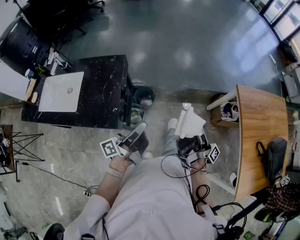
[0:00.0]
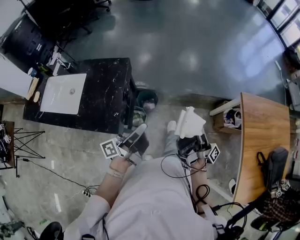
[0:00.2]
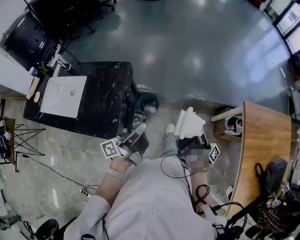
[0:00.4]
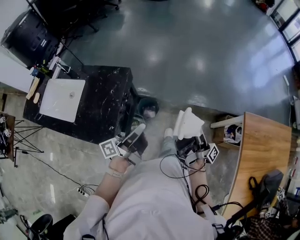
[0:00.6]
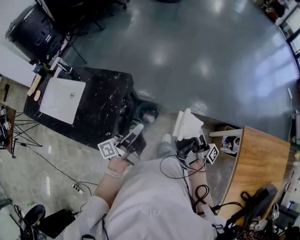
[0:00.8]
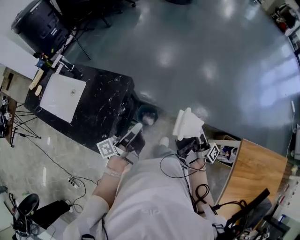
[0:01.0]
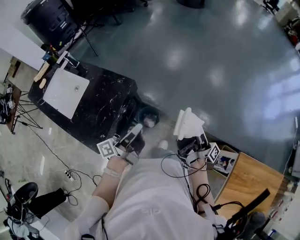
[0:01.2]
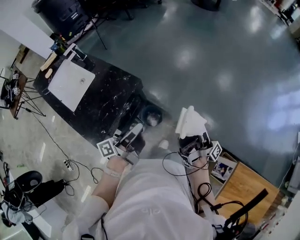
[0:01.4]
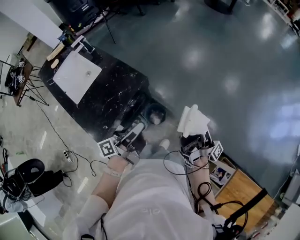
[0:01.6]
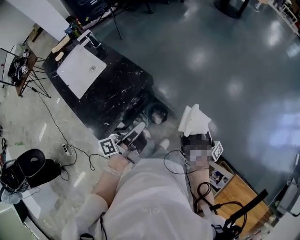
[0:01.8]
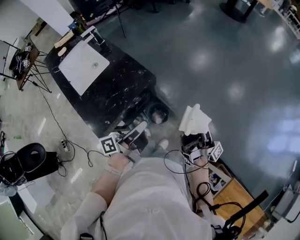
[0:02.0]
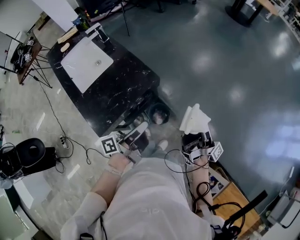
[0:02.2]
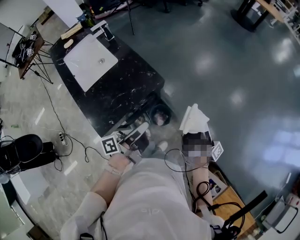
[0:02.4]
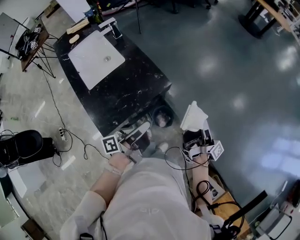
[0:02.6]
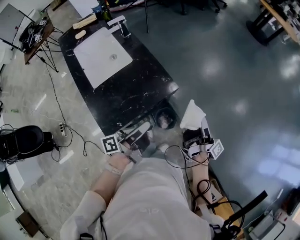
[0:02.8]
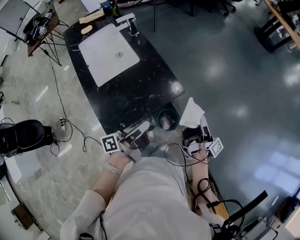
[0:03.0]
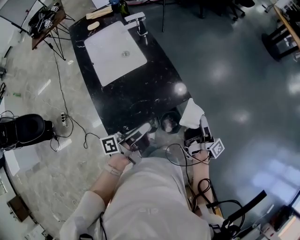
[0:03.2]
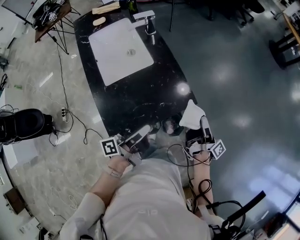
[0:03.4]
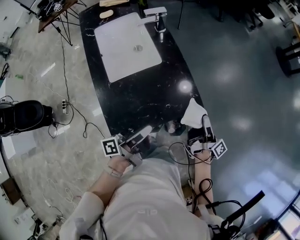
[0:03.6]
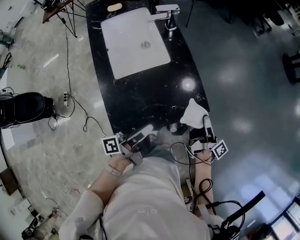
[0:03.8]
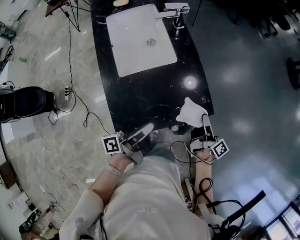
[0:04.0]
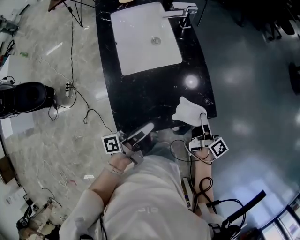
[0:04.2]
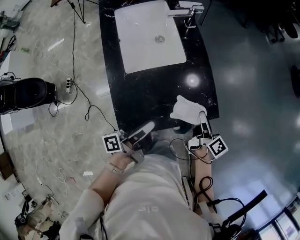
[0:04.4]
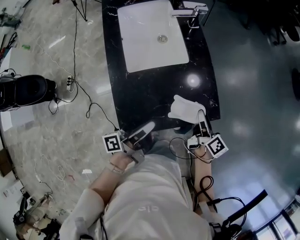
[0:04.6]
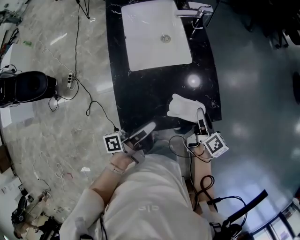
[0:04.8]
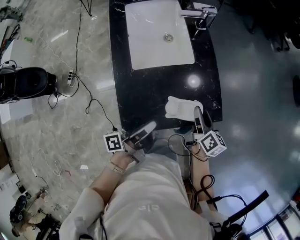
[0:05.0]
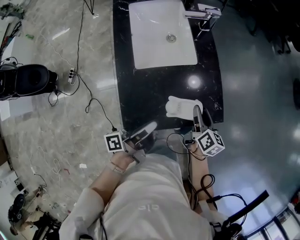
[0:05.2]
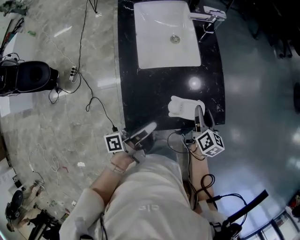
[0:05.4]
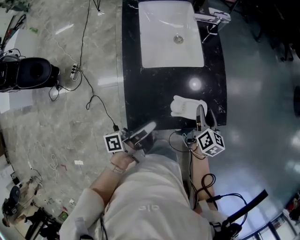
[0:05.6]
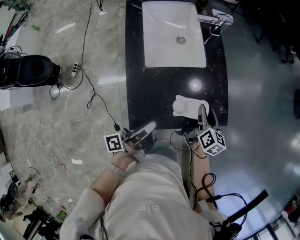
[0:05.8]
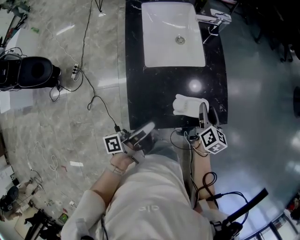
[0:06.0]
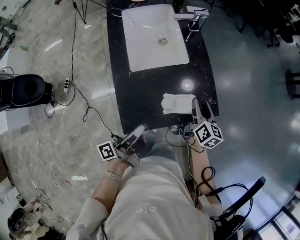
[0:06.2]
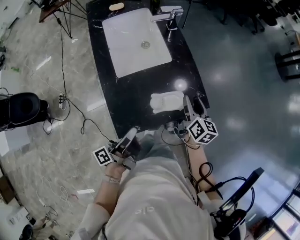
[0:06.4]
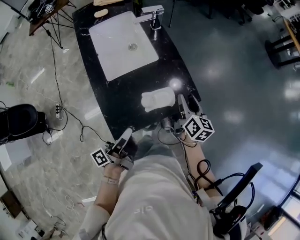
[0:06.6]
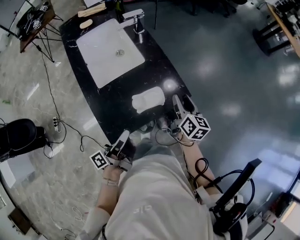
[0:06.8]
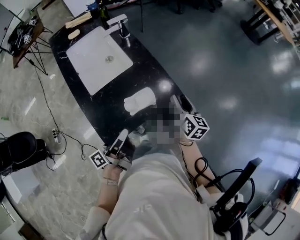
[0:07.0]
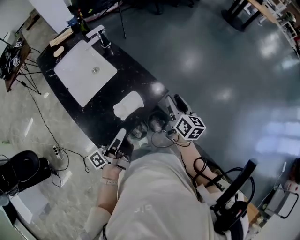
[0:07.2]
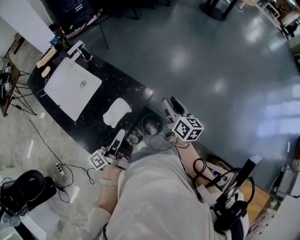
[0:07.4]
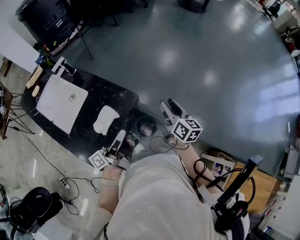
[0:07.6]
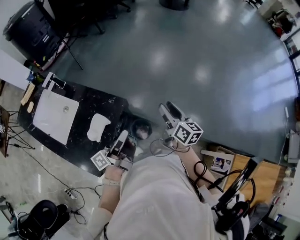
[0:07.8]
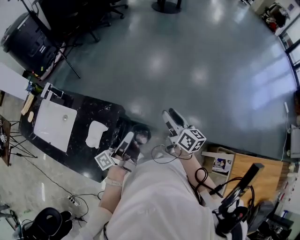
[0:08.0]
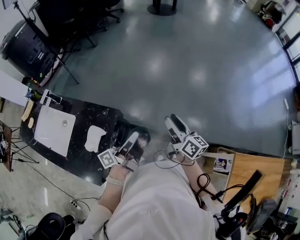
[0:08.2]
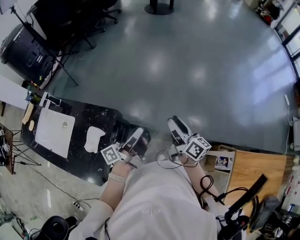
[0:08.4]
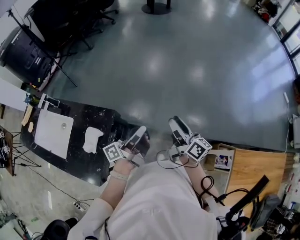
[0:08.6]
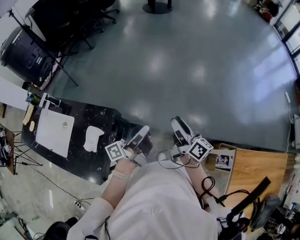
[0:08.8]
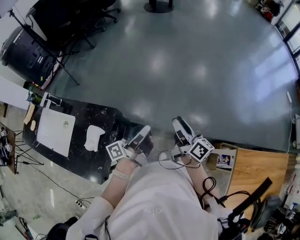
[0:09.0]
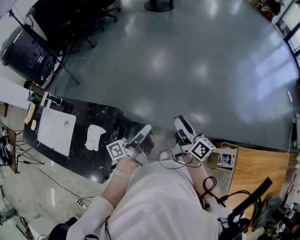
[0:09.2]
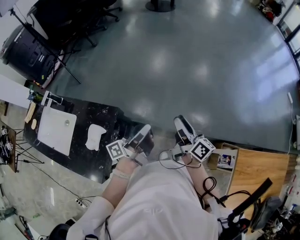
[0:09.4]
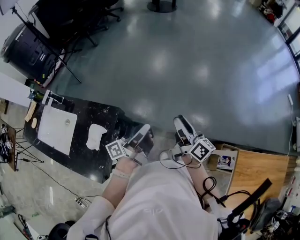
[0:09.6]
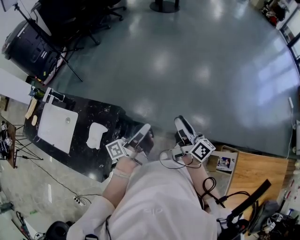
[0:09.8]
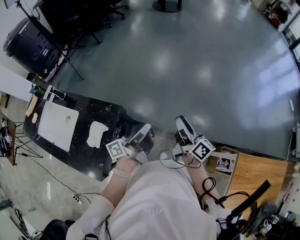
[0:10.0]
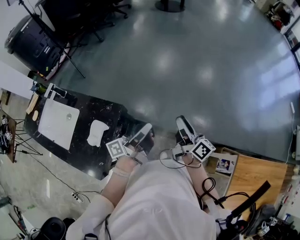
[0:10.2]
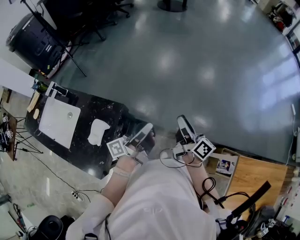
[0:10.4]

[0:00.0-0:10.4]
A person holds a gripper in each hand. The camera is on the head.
0:00.0 to 0:01.4: The right gripper moves roughly 40 cm, and rotates about 30 degrees.
0:01.4 to 0:03.0: The right gripper changes place by some 25 cm, and changes its angle by about 20 degrees.
0:03.0 to 0:04.4: The right gripper moves roughly 20 cm, and tilts its fingers some 30 degrees downward.
0:04.4 to 0:06.0: The right gripper ends up some 10 cm from where it was, and rotates some 30 degrees.
0:06.0 to 0:07.4: The right gripper shifts by about 25 cm, and rotates about 30 degrees.
0:07.4 to 0:09.0: The right gripper shifts by about 25 cm, and swivels about 30 degrees.

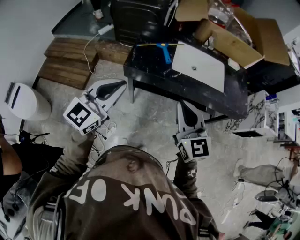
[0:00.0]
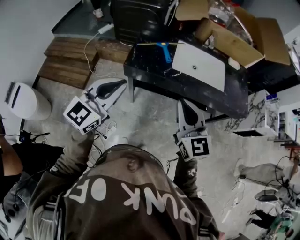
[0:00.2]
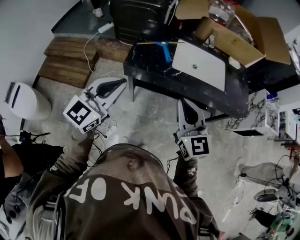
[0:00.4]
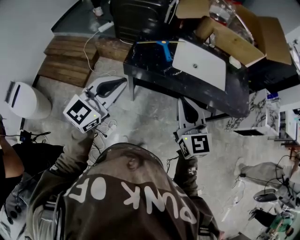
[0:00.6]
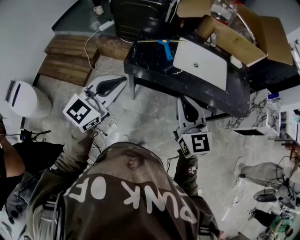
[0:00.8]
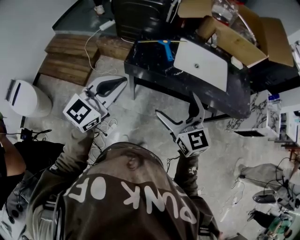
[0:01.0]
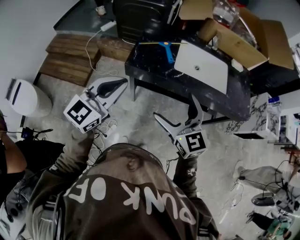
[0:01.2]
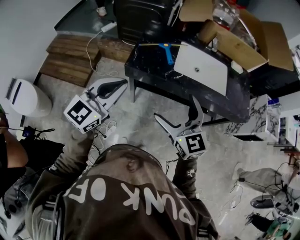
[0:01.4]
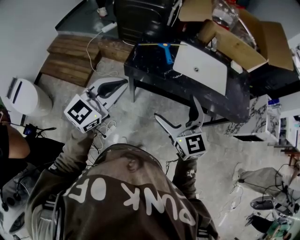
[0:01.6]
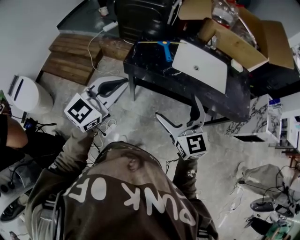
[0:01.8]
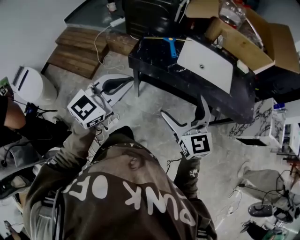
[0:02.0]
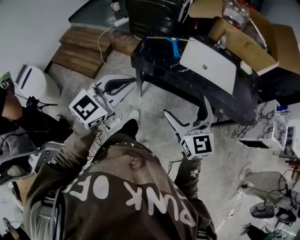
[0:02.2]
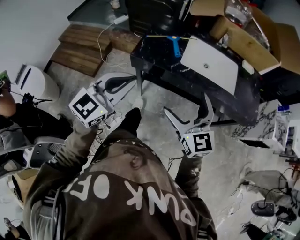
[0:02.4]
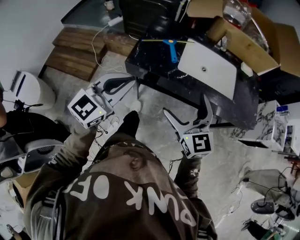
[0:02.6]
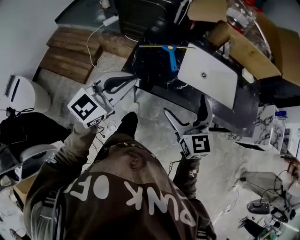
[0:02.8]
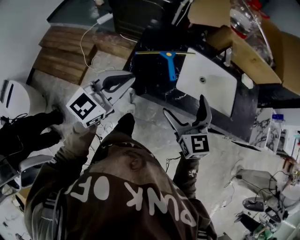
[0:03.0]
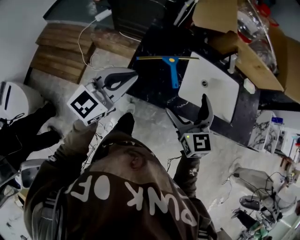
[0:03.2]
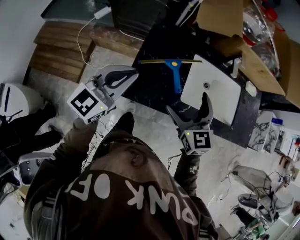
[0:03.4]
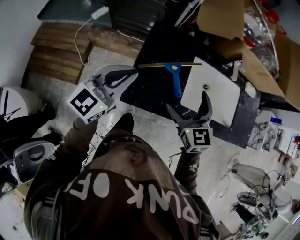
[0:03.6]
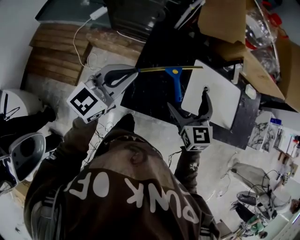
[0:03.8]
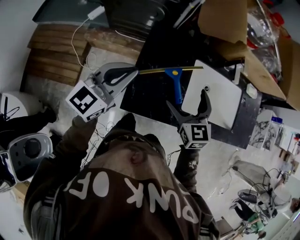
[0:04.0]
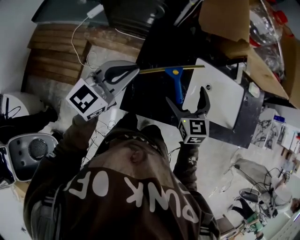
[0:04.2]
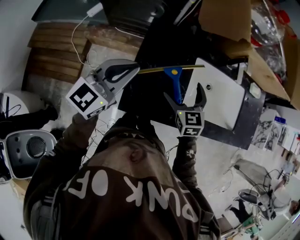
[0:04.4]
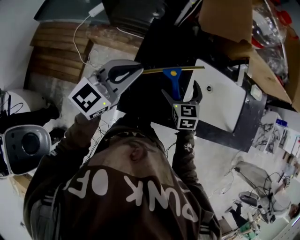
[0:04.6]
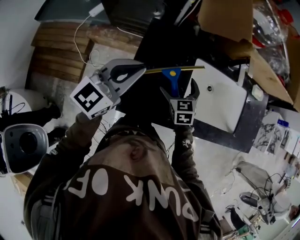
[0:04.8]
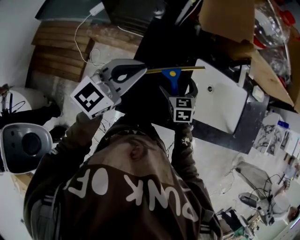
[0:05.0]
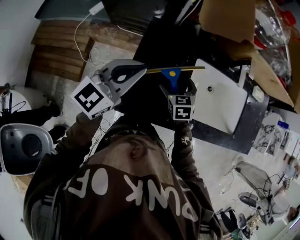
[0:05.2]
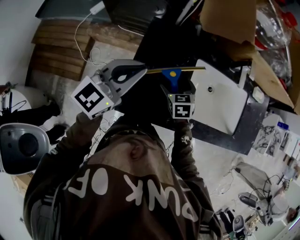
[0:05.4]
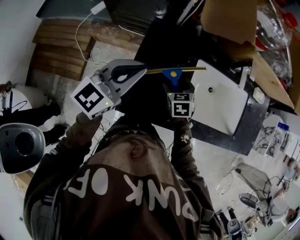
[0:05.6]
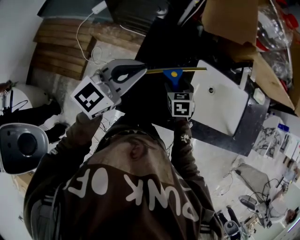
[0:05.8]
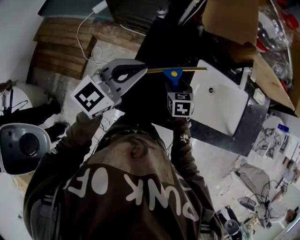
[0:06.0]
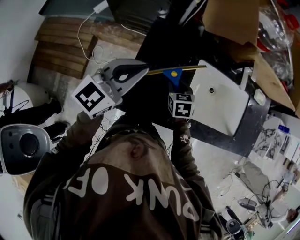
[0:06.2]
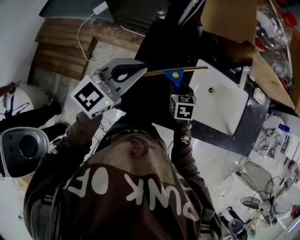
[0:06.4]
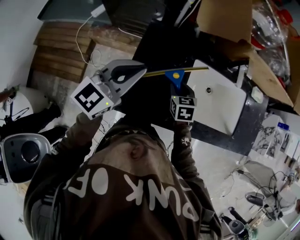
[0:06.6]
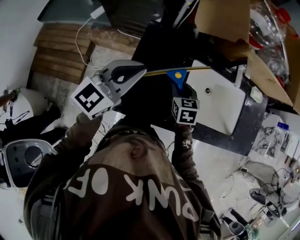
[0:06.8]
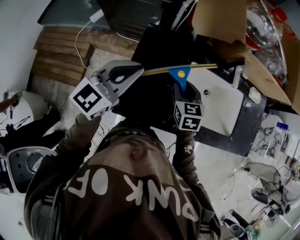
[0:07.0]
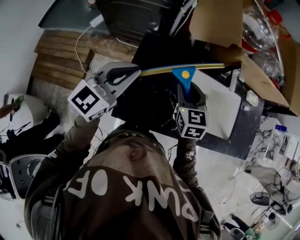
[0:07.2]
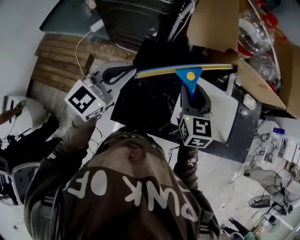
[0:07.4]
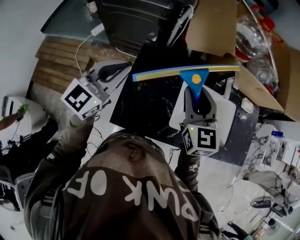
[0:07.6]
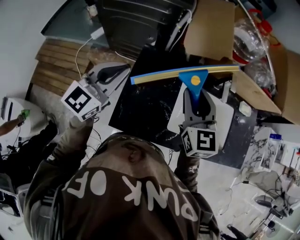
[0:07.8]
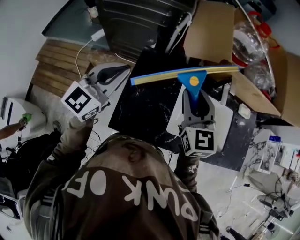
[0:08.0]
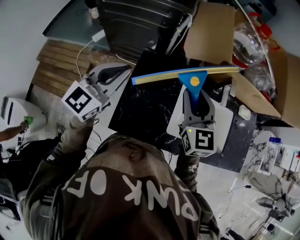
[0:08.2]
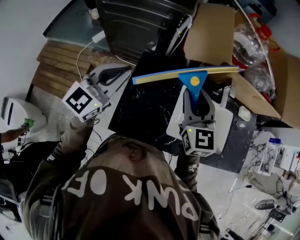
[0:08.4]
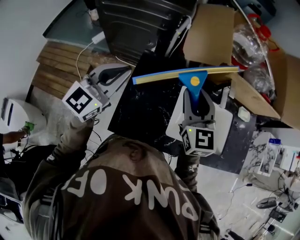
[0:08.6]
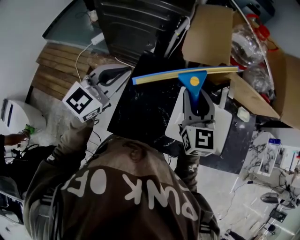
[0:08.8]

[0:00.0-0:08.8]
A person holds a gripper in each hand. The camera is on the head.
0:00.0 to 0:01.4: The right gripper opens up.
0:01.4 to 0:03.0: Both grippers move forward, some 20 cm.
0:03.0 to 0:04.4: The left gripper heads forward, covering about 20 cm. Meanwhile the right gripper travels forward and downward by roughly 25 cm, and swivels some 20 degrees.
0:04.4 to 0:05.8: The right gripper goes roughly 10 cm downward, and closes.
0:05.8 to 0:07.4: The right gripper travels upward by roughly 25 cm, and angles its fingers upward, by about 30 degrees.
0:07.4 to 0:08.8: The right gripper moves upward, approximately 5 cm.

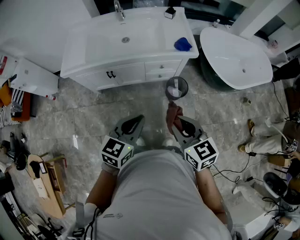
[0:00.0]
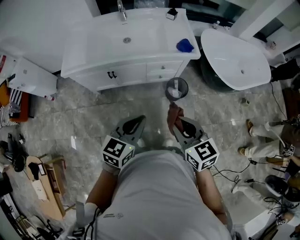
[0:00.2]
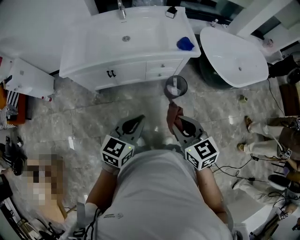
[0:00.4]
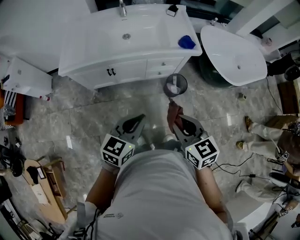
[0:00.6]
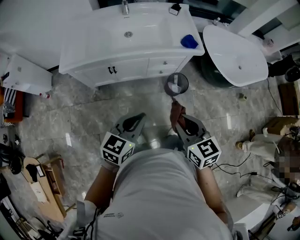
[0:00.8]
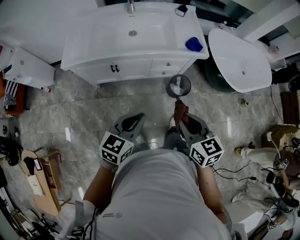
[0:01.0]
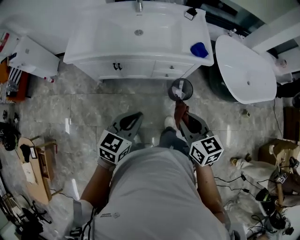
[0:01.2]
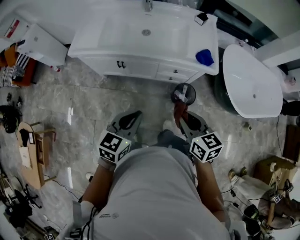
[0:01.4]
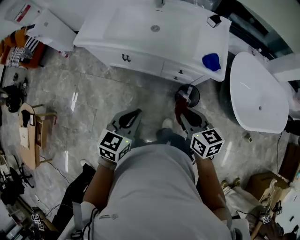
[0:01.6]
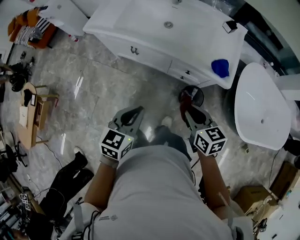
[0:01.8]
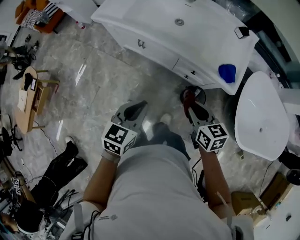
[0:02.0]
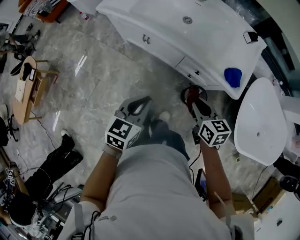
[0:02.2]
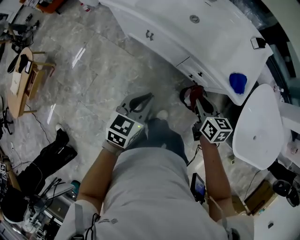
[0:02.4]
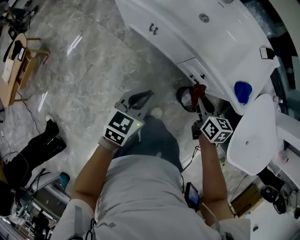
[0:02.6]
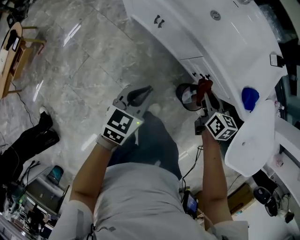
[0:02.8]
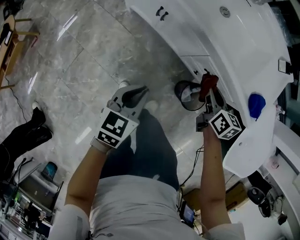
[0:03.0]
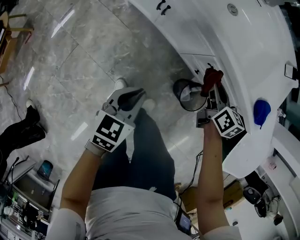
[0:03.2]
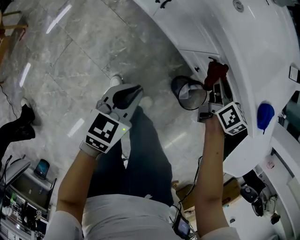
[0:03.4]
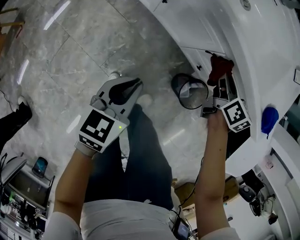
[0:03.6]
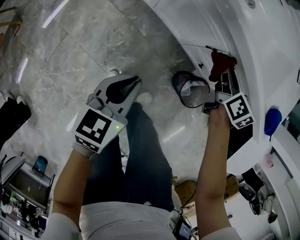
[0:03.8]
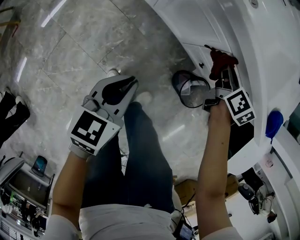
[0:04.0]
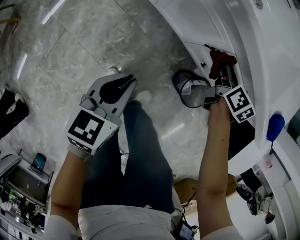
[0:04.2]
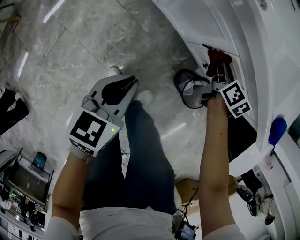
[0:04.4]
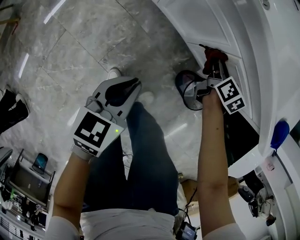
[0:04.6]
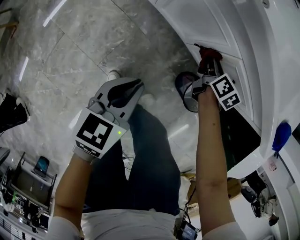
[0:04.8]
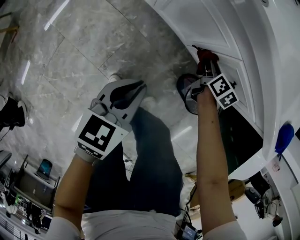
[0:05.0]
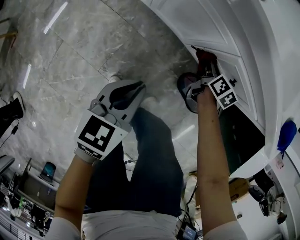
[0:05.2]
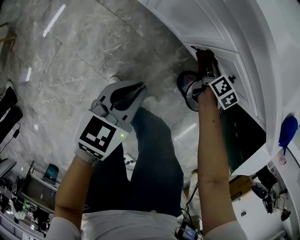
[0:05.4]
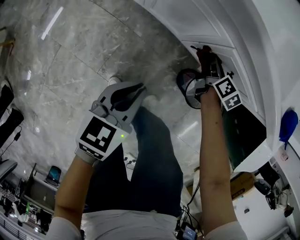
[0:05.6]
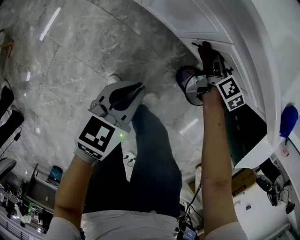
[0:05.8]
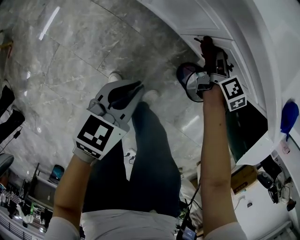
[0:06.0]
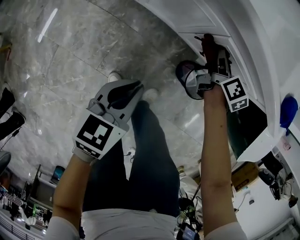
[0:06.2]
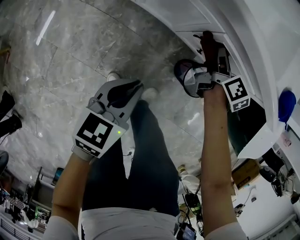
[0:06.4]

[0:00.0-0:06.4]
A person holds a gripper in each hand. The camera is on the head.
0:00.0 to 0:01.6: The left gripper ends up some 10 cm from where it was, and rotates about 20 degrees, while the right gripper shifts by approximately 20 cm, and turns by about 20 degrees.
0:01.6 to 0:03.2: The left gripper goes about 25 cm downward, and swivels about 20 degrees. Meanwhile the right gripper is displaced downward and forward by roughly 35 cm.
0:03.2 to 0:04.8: The left gripper heads downward, covering roughly 10 cm. Meanwhile the right gripper is displaced downward by roughly 20 cm.
0:04.8 to 0:06.4: The right gripper is displaced upward and to the right by some 10 cm, and swivels about 20 degrees.
